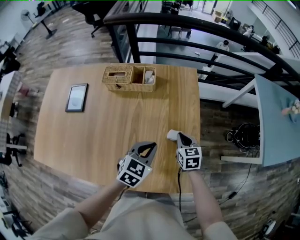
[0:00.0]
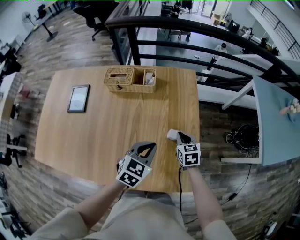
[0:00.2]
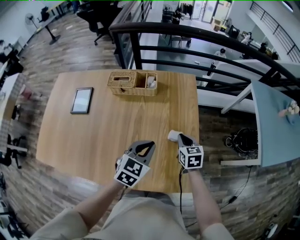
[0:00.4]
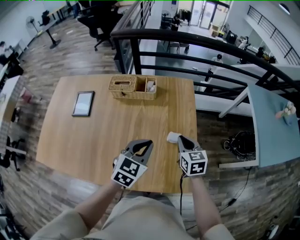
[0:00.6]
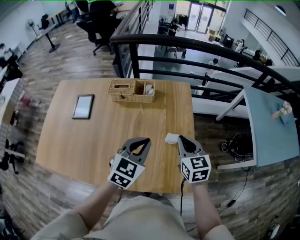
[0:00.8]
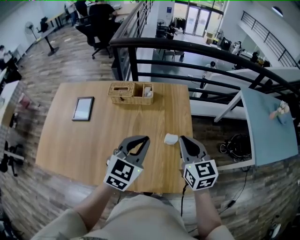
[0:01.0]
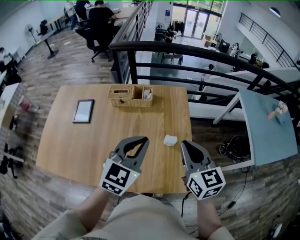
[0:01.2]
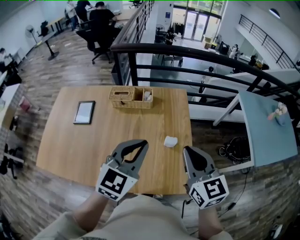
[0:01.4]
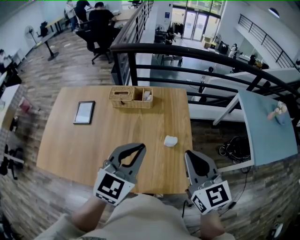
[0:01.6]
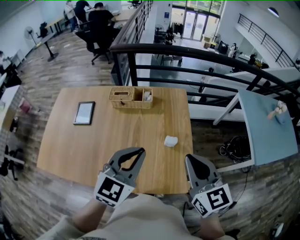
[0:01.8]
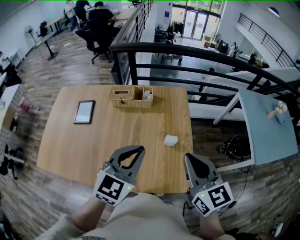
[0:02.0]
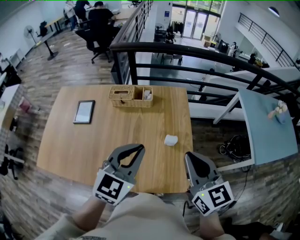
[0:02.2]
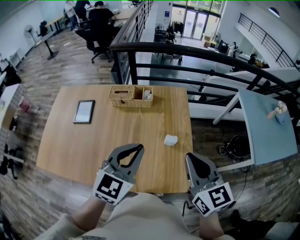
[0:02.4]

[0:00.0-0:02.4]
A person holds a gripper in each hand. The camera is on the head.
0:00.0 to 0:01.2: The left gripper heads upward, covering about 20 cm, and rotates approximately 20 degrees. Meanwhile the right gripper goes about 30 cm upward and backward, and changes its angle by some 30 degrees.
0:01.2 to 0:02.4: The right gripper heads backward, covering about 5 cm.

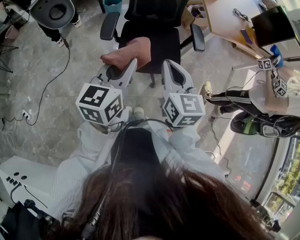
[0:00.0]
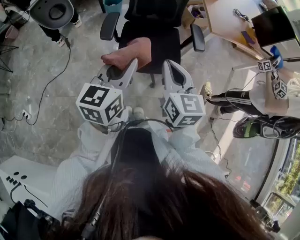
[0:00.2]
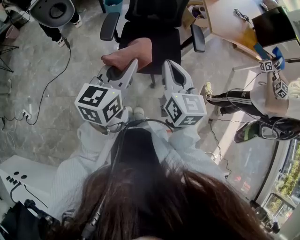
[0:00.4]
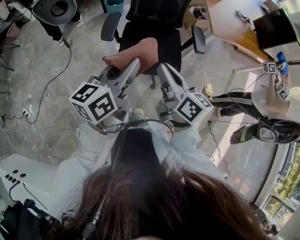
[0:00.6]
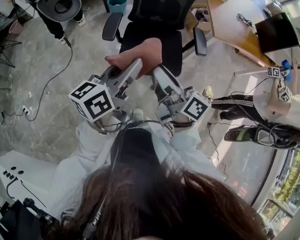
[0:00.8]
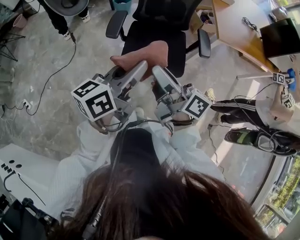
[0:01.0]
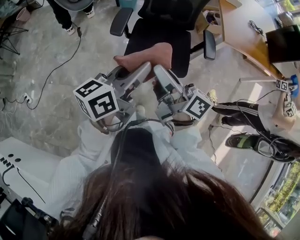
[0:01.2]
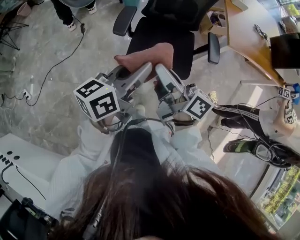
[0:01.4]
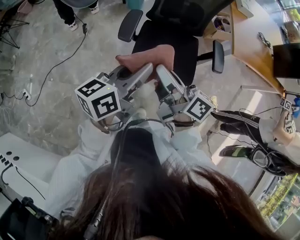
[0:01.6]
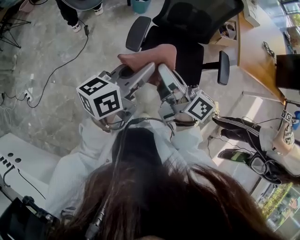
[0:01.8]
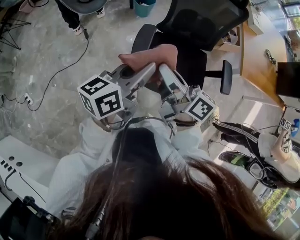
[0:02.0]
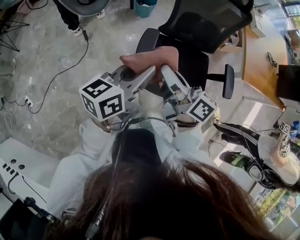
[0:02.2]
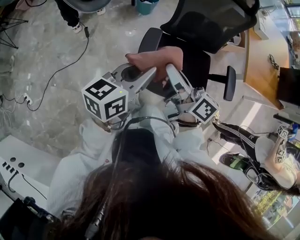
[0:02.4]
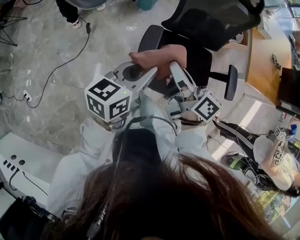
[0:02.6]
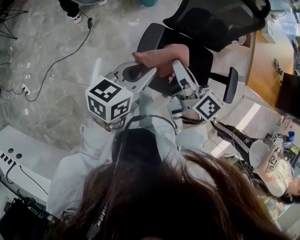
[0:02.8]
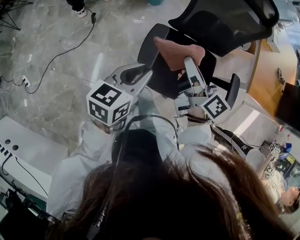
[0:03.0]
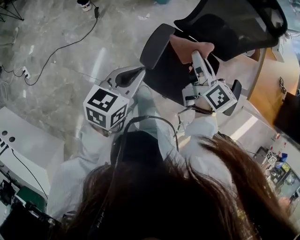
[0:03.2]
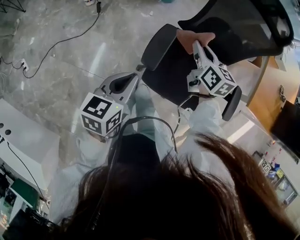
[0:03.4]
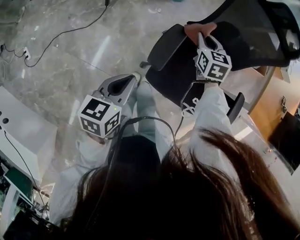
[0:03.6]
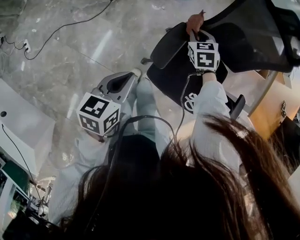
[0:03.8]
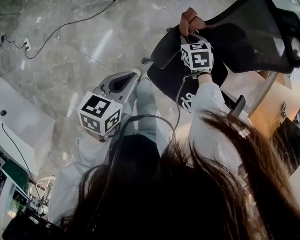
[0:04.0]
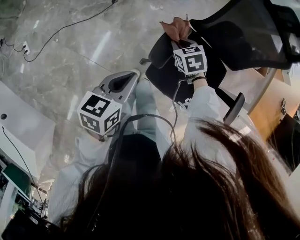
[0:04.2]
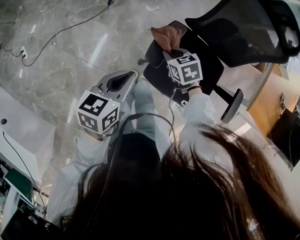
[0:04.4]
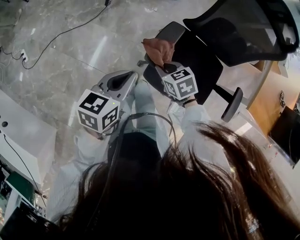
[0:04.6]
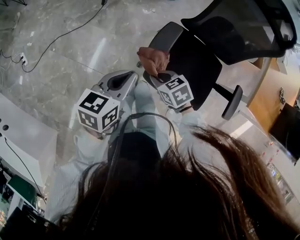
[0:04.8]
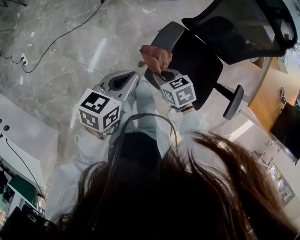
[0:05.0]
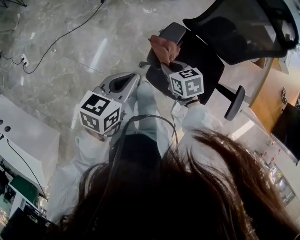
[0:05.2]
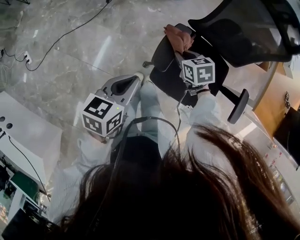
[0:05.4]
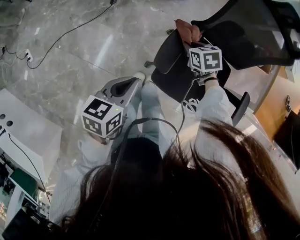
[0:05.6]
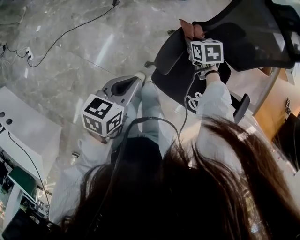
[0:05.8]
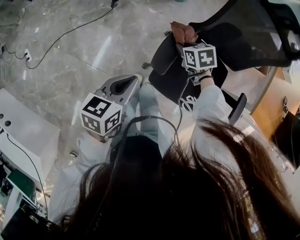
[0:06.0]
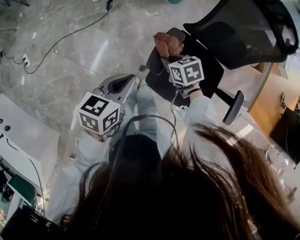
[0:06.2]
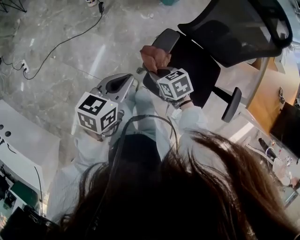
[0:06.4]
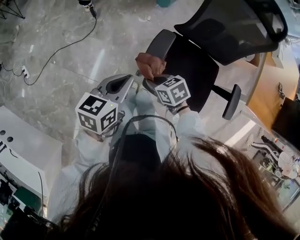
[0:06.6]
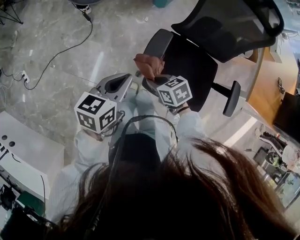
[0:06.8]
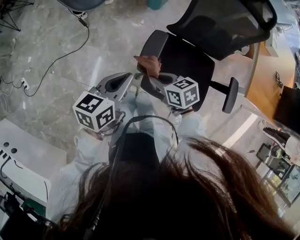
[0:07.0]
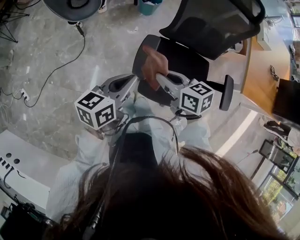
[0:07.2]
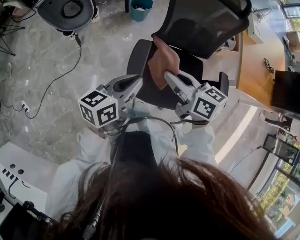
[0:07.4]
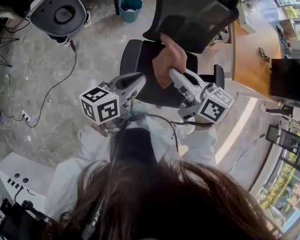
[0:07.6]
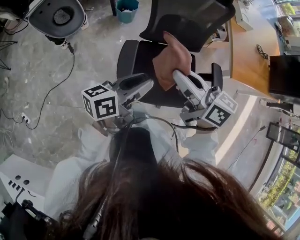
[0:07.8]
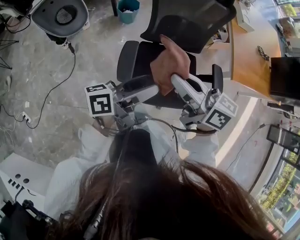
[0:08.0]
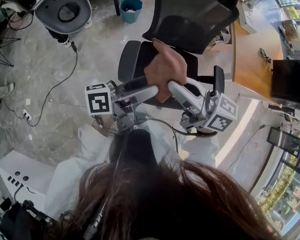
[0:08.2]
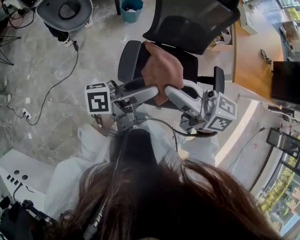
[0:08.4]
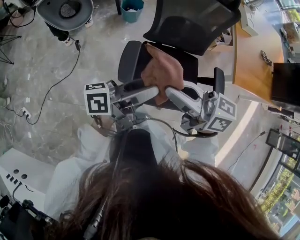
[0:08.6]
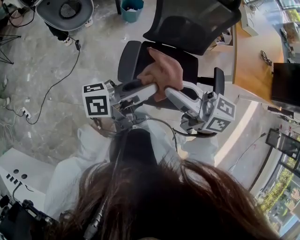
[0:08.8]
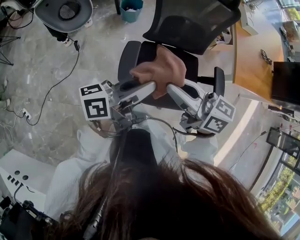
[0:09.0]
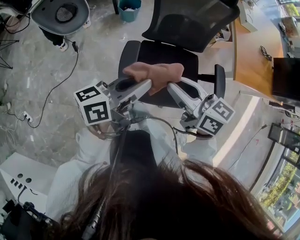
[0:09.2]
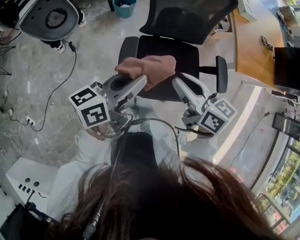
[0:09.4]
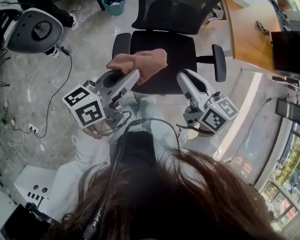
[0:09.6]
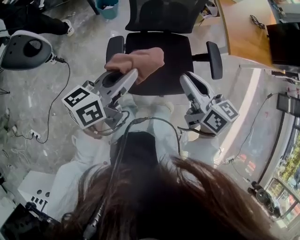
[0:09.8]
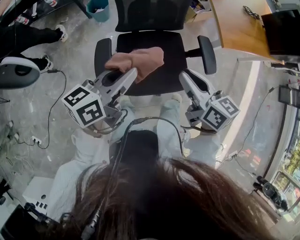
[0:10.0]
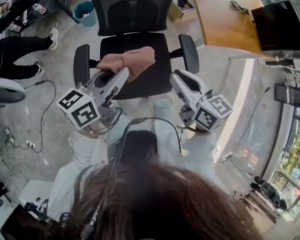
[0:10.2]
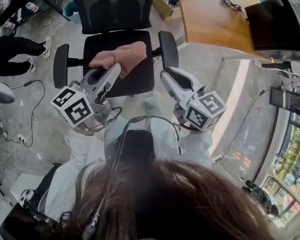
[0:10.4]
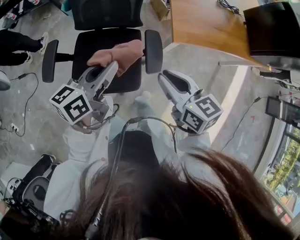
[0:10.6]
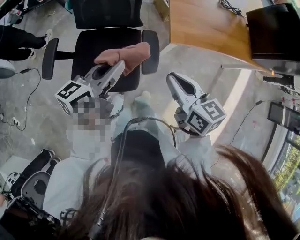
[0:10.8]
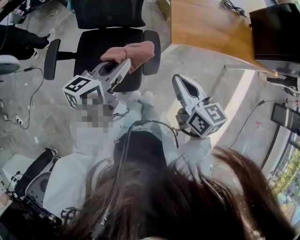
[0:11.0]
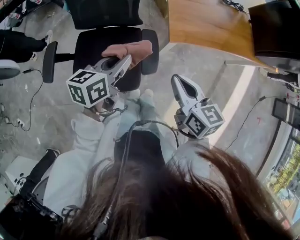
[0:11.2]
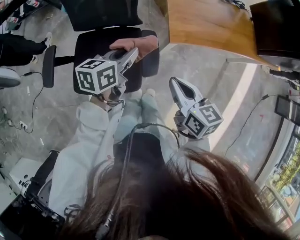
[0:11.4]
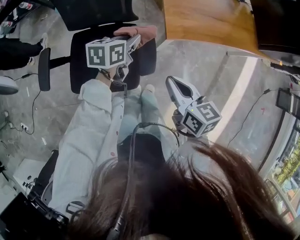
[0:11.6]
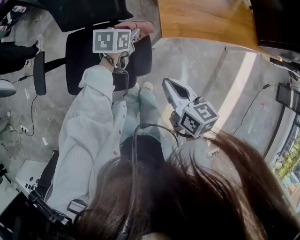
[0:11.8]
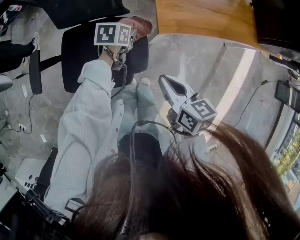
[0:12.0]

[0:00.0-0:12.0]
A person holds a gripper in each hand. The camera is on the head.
0:00.0 to 0:01.6: The right gripper shifts some 10 cm to the left and forward, swivels approximately 60 degrees, and opens, then closes again, while the left gripper goes about 5 cm forward, and changes its angle by approximately 30 degrees.
0:01.6 to 0:03.0: The left gripper moves forward, to the left and downward, approximately 25 cm, and swivels roughly 20 degrees; the right gripper travels forward by approximately 25 cm.
0:03.0 to 0:04.4: The right gripper is displaced downward by roughly 25 cm, and points its fingers some 50 degrees further downward, while the left gripper travels to the left and downward by about 10 cm.
0:04.4 to 0:06.0: The right gripper reaches about 10 cm backward, then returns.
0:06.0 to 0:07.6: The left gripper moves about 20 cm, and rotates roughly 30 degrees. Meanwhile the right gripper travels upward by approximately 30 cm, and points its fingers roughly 50 degrees further upward.
0:07.6 to 0:09.0: The left gripper travels upward by about 5 cm, swivels approximately 20 degrees, and opens and closes again.
0:09.0 to 0:10.4: Both grippers move to the right, approximately 30 cm. The right gripper changes its angle by about 30 degrees. Meanwhile the left gripper changes its angle by approximately 20 degrees.
0:10.4 to 0:12.0: The left gripper moves downward, to the right and forward, some 40 cm, and angles its fingers downward, by roughly 40 degrees. The right gripper travels to the right and downward by roughly 20 cm.

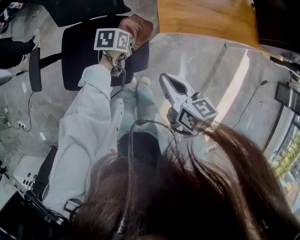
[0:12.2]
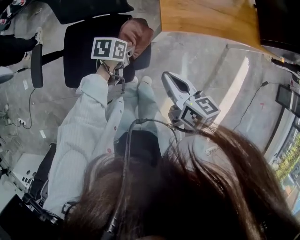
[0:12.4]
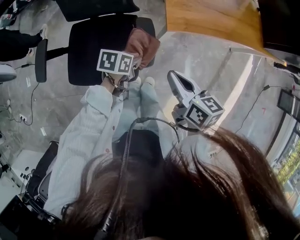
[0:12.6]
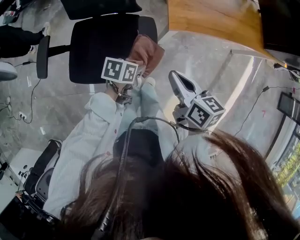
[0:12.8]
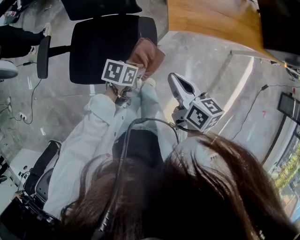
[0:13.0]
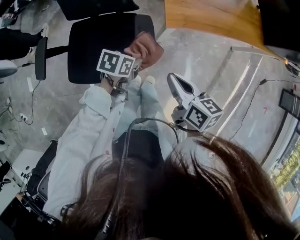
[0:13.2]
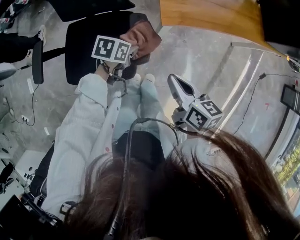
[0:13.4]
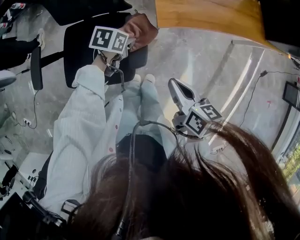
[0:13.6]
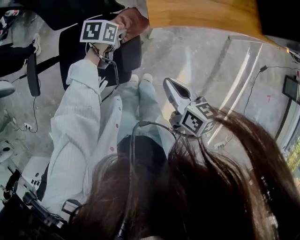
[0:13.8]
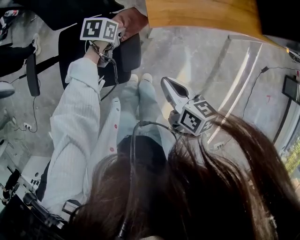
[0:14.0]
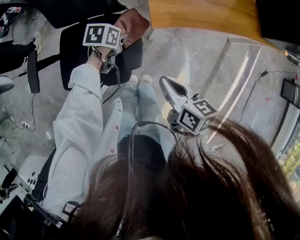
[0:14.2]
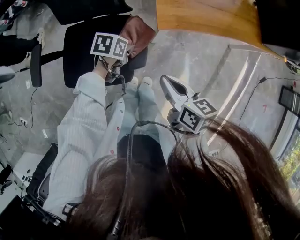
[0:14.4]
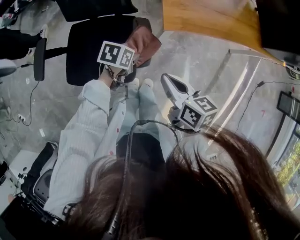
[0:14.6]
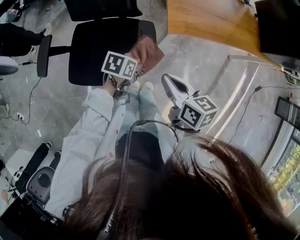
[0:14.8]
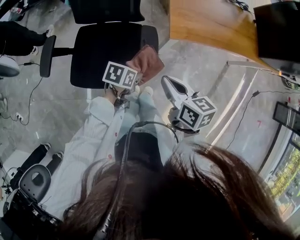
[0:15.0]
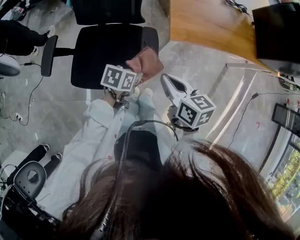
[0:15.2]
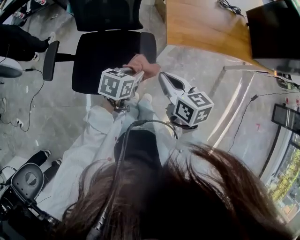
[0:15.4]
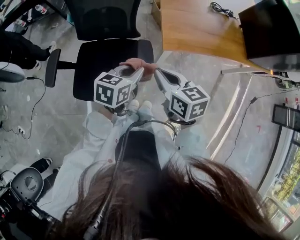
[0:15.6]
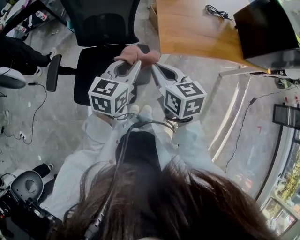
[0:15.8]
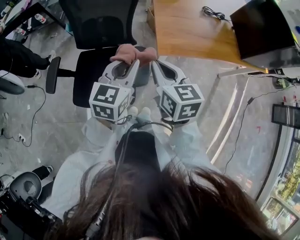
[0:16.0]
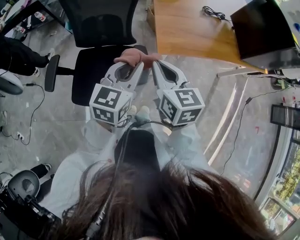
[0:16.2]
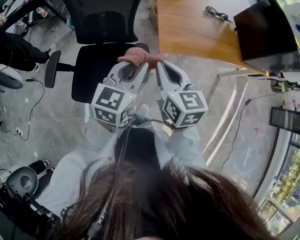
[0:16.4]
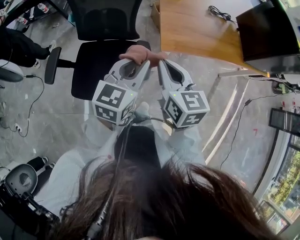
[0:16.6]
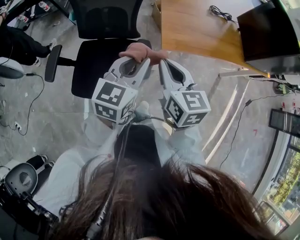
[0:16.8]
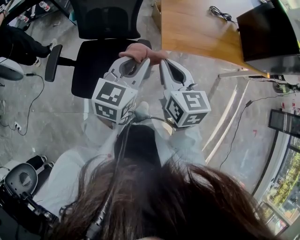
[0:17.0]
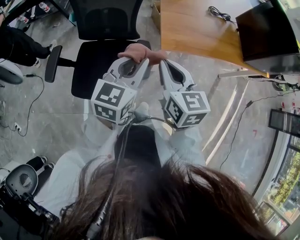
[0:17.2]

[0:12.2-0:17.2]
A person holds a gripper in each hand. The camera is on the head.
0:12.2 to 0:13.8: The left gripper moves some 15 cm backward and comes back; the right gripper shifts roughly 5 cm to the right.
0:13.8 to 0:15.6: The right gripper is displaced upward and to the left by some 15 cm, and swivels approximately 20 degrees. Meanwhile the left gripper heads upward and backward, covering approximately 25 cm, and turns by roughly 30 degrees.
0:15.6 to 0:17.2: The left gripper heads upward, covering approximately 10 cm, and rotates about 30 degrees, while the right gripper is displaced upward by some 5 cm.

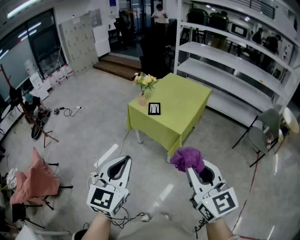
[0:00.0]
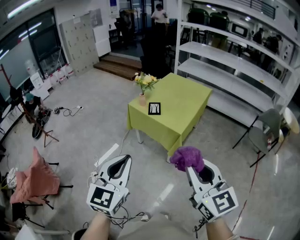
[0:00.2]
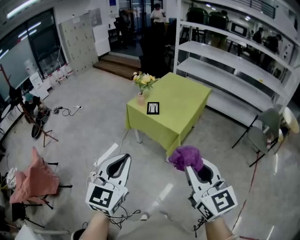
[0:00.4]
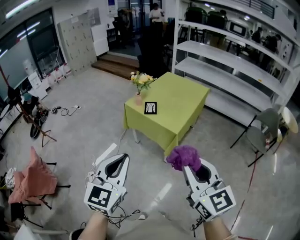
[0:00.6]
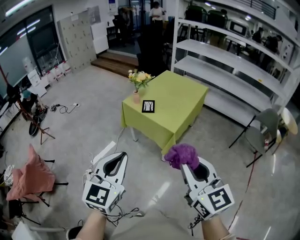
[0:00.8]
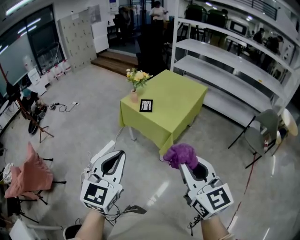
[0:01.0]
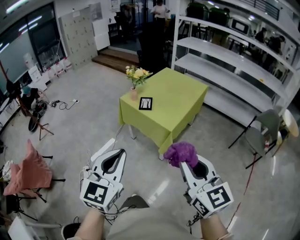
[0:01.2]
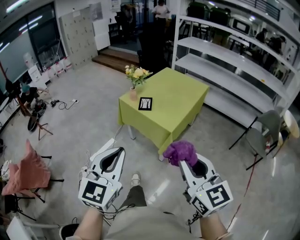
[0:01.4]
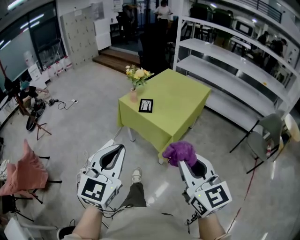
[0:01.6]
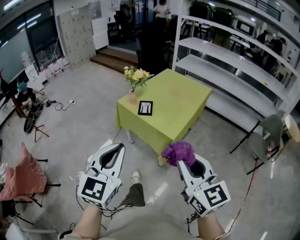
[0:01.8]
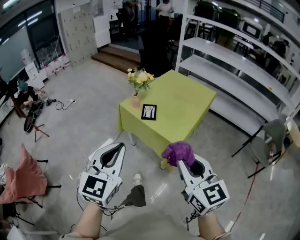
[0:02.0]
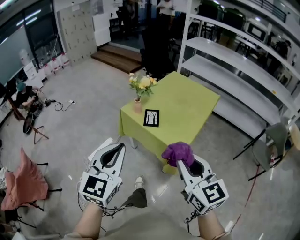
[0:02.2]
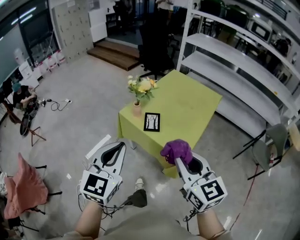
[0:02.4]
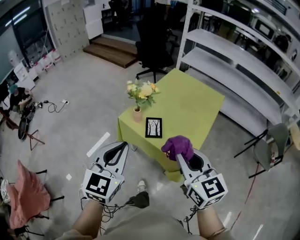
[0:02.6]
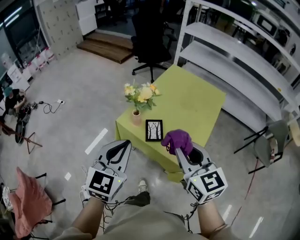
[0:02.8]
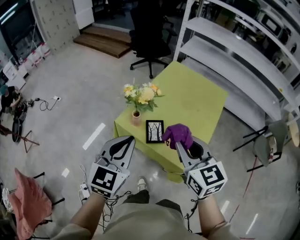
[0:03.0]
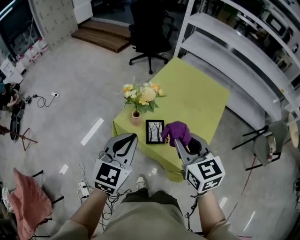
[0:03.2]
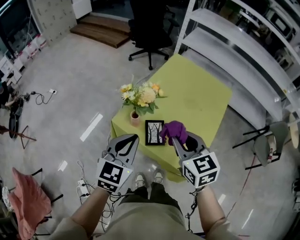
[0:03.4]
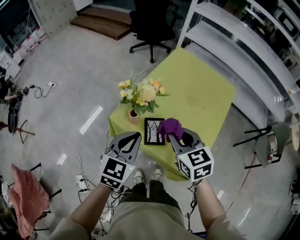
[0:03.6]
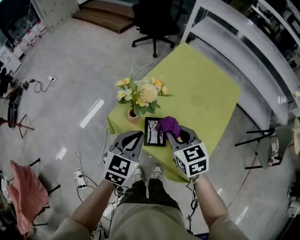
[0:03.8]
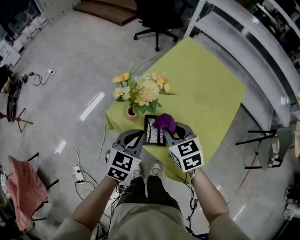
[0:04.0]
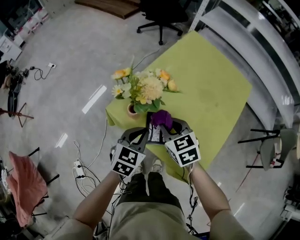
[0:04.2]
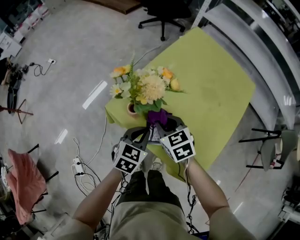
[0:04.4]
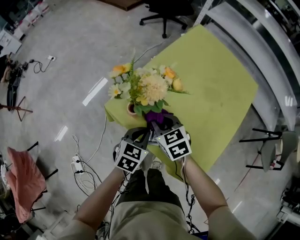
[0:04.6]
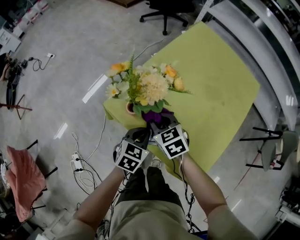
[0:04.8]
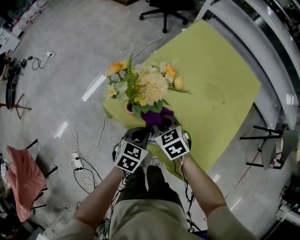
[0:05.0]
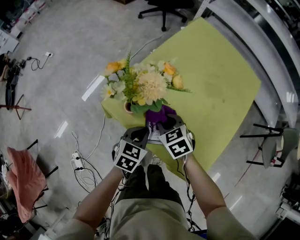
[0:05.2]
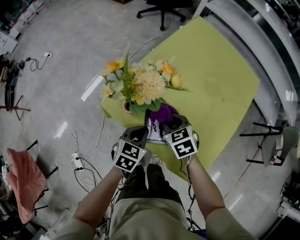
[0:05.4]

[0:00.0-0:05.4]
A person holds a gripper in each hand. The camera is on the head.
0:00.0 to 0:01.4: The left gripper heads to the right, covering about 5 cm. Meanwhile the right gripper goes roughly 10 cm to the right, forward and downward.
0:01.4 to 0:02.8: The pair of grippers is taken forward, about 50 cm.
0:02.8 to 0:04.0: The grippers both shift downward and forward by approximately 30 cm. The left gripper swivels approximately 20 degrees. The right gripper rotates about 30 degrees.
0:04.0 to 0:05.4: Both grippers travel together downward, about 15 cm.
